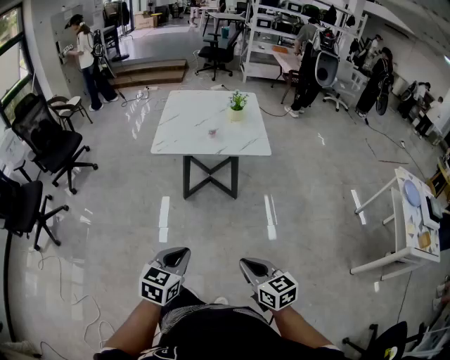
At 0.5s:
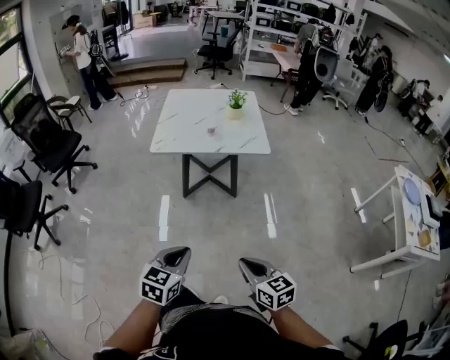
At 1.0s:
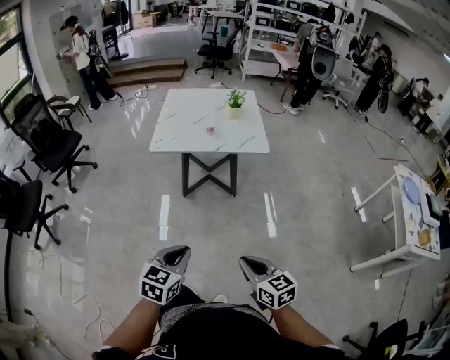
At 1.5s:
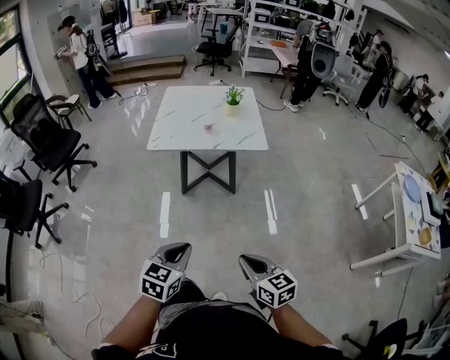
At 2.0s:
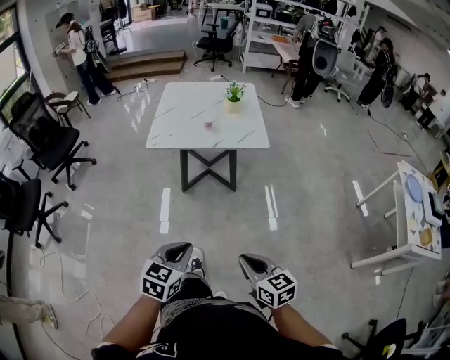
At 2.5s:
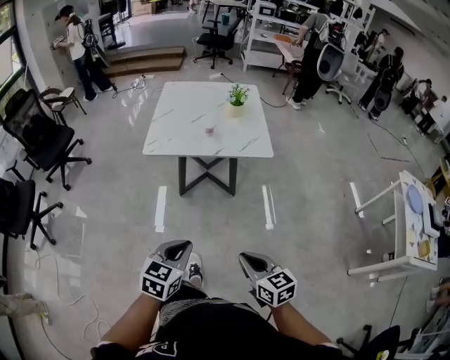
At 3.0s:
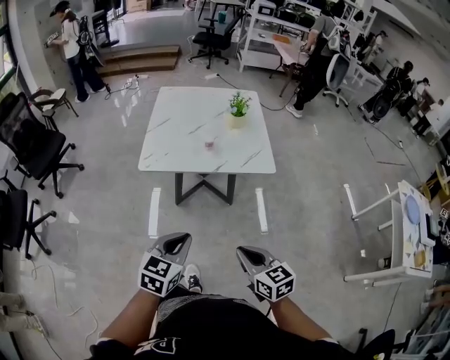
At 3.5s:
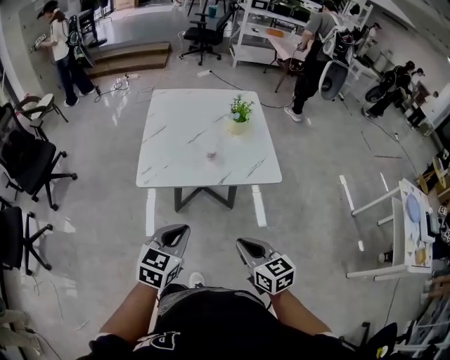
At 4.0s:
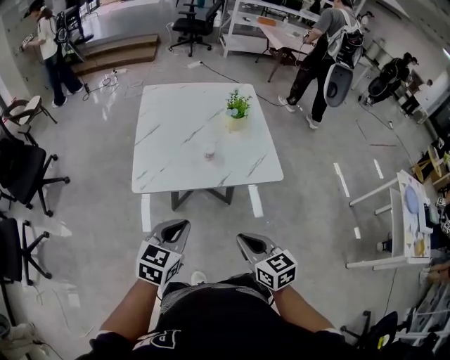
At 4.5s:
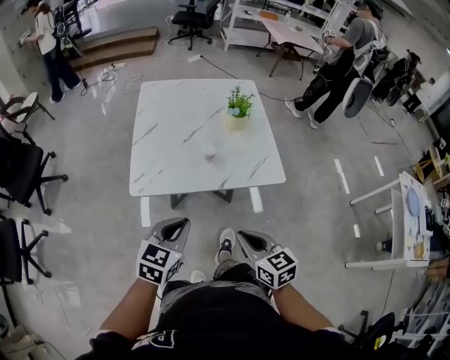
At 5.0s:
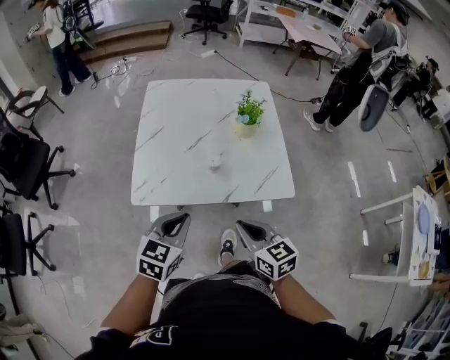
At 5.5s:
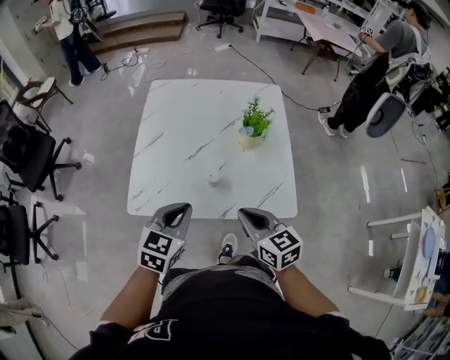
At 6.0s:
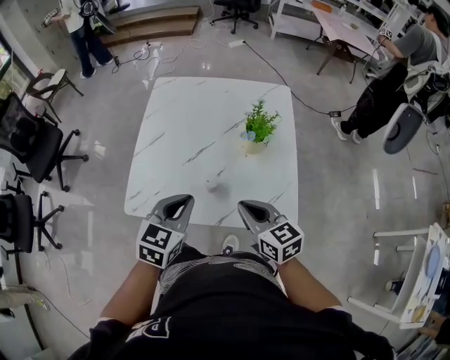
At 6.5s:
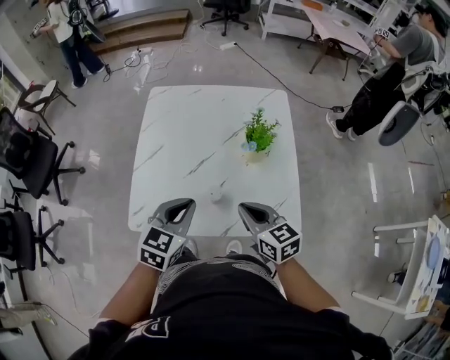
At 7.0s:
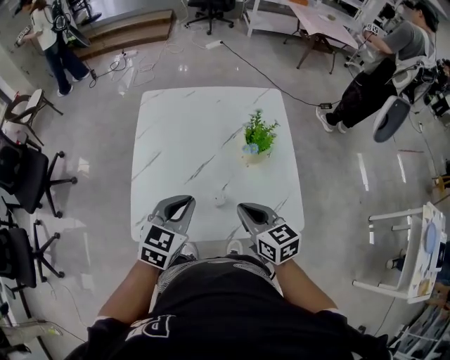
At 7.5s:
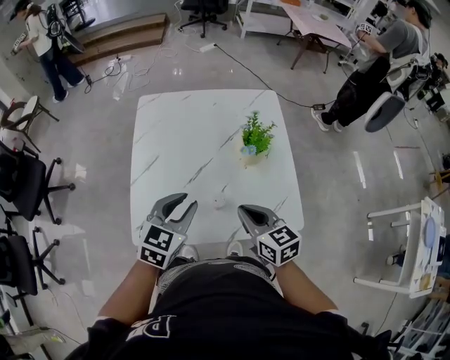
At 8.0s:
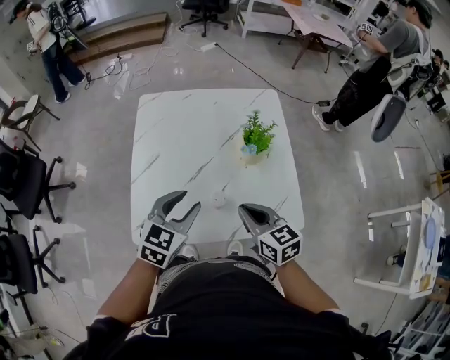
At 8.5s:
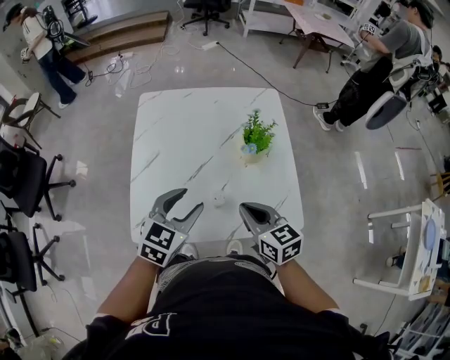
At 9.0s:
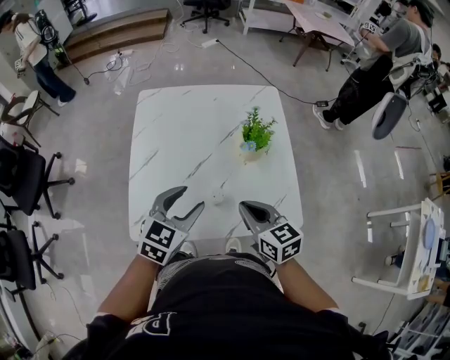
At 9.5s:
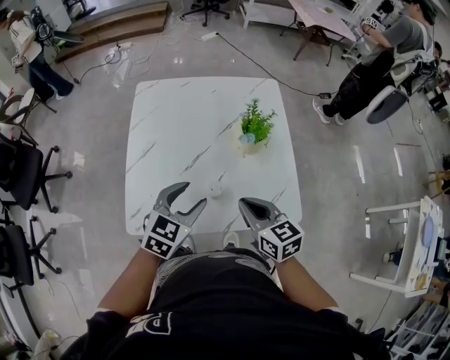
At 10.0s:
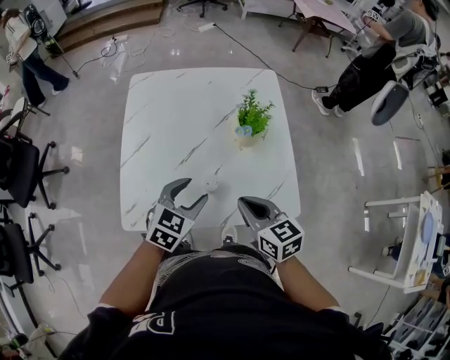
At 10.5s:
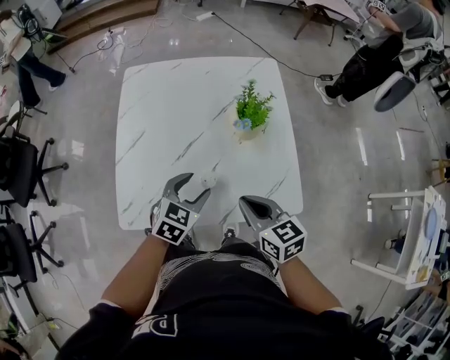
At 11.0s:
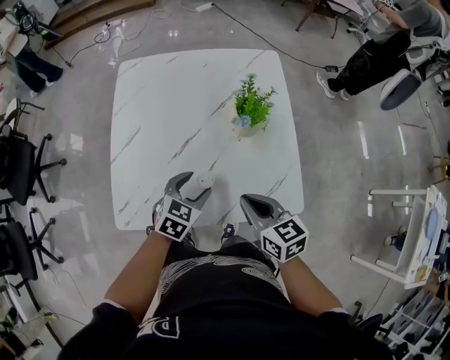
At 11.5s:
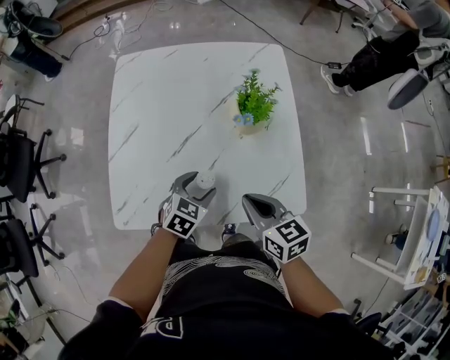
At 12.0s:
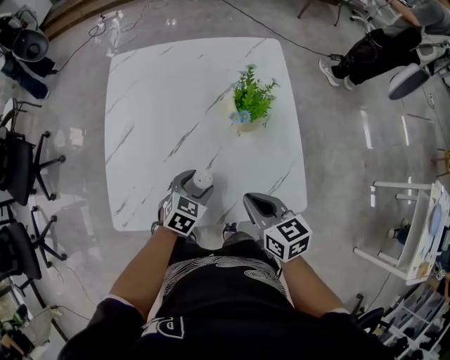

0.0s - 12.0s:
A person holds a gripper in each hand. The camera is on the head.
0.0s - 2.0s: The grippers move only a little.
2.0s - 4.0s: The grippers both shift forward by some 35 cm.
4.0s - 6.0s: Both grippers travel together forward, some 30 cm.
6.0s - 8.0s: The right gripper shifts by approximately 5 cm, while the left gripper travels forward by about 5 cm, and opens.
8.0s - 10.0s: The left gripper travels downward by about 5 cm.
10.0s - 12.0s: The left gripper shifts some 15 cm downward, while the right gripper shifts about 5 cm downward.

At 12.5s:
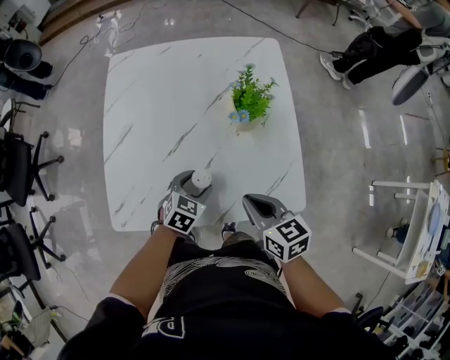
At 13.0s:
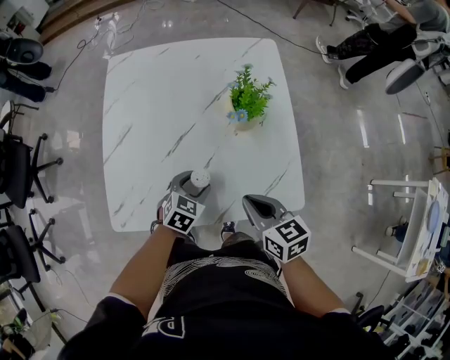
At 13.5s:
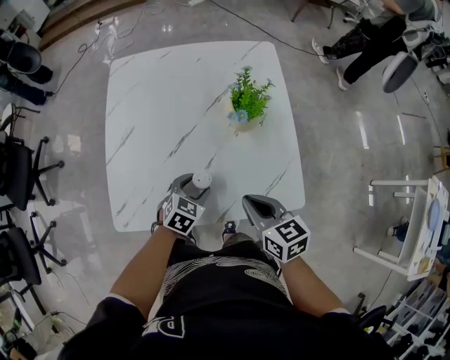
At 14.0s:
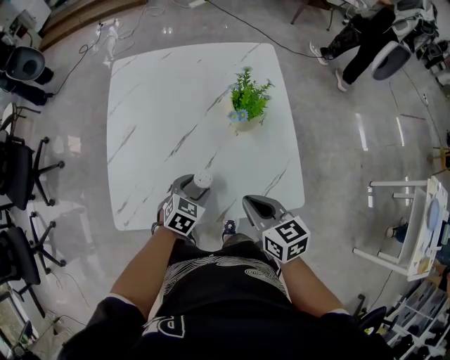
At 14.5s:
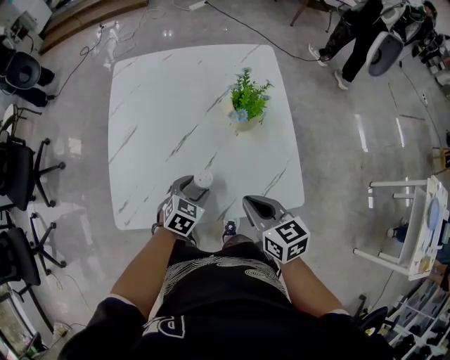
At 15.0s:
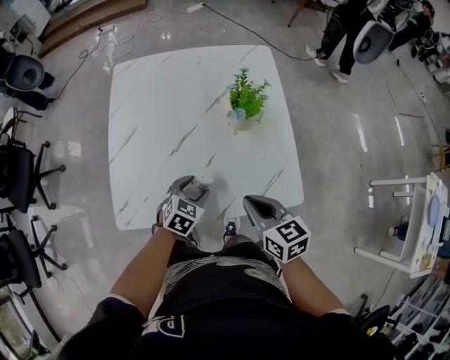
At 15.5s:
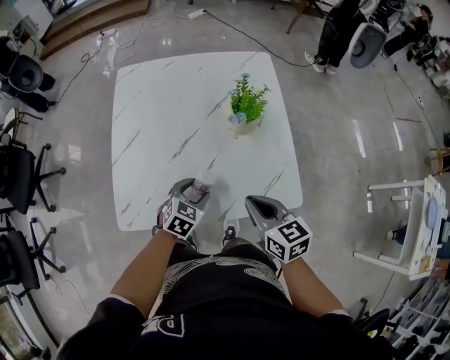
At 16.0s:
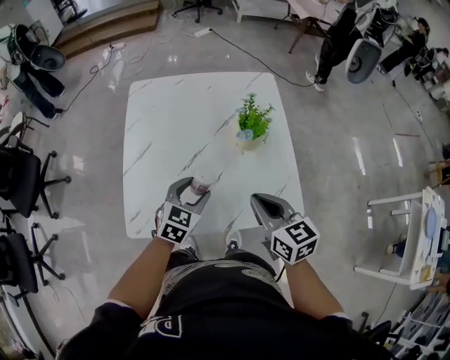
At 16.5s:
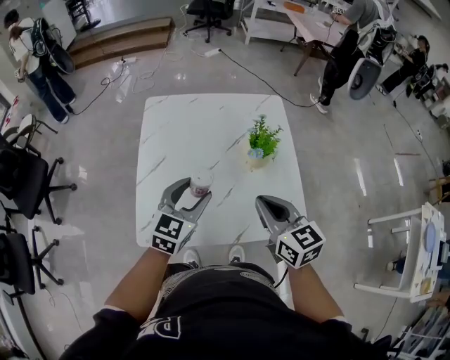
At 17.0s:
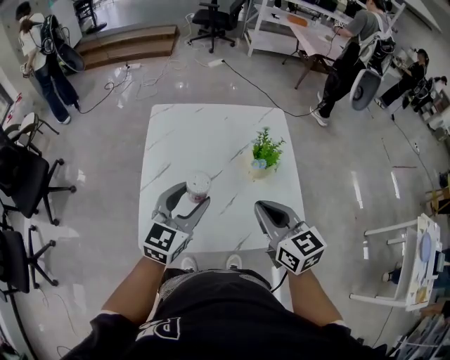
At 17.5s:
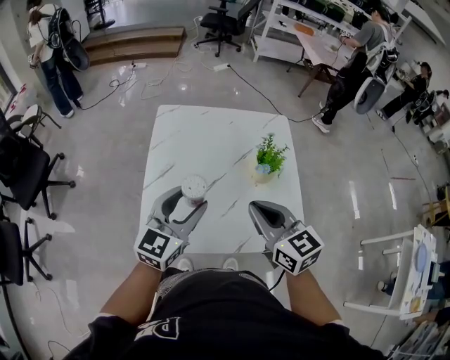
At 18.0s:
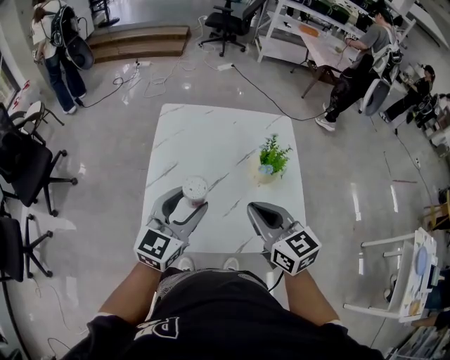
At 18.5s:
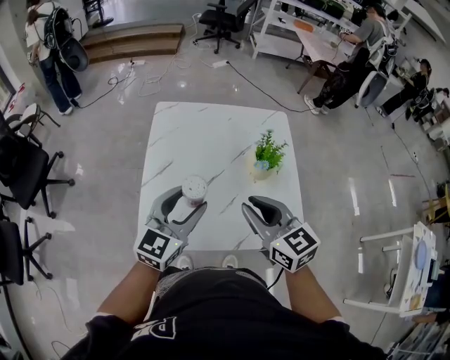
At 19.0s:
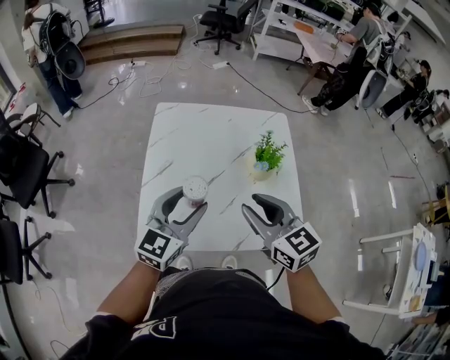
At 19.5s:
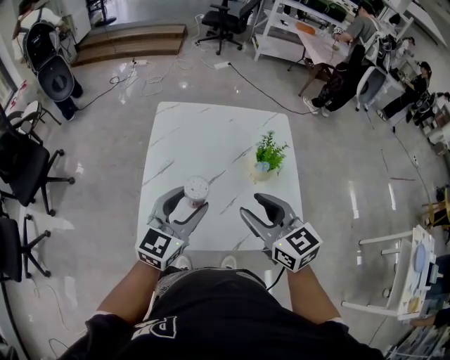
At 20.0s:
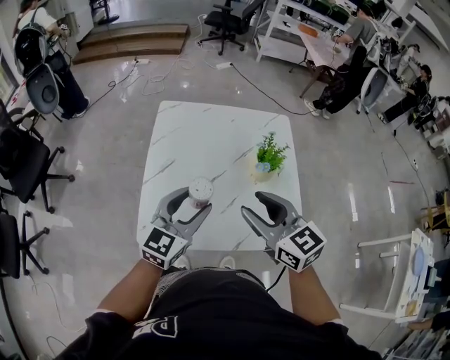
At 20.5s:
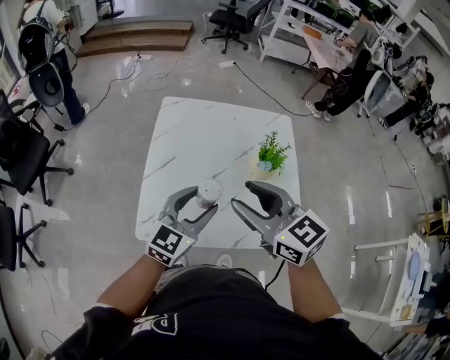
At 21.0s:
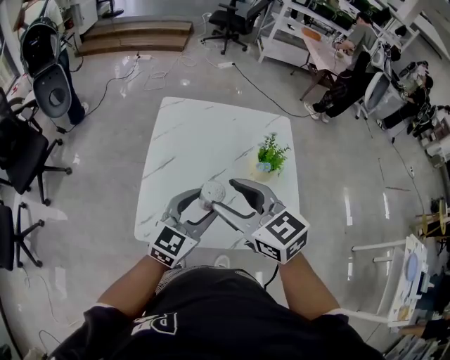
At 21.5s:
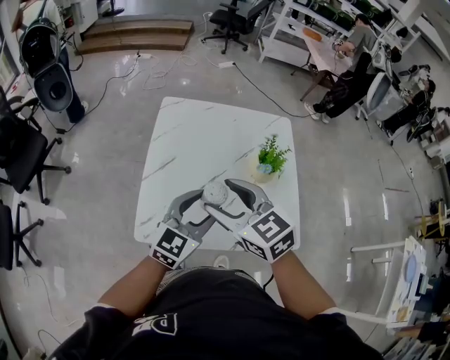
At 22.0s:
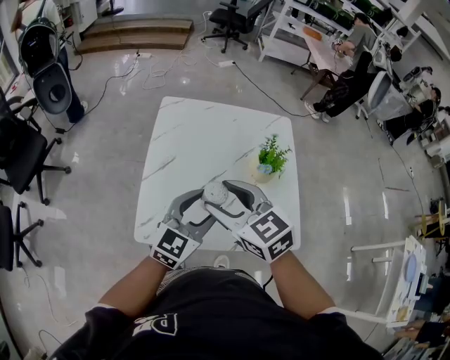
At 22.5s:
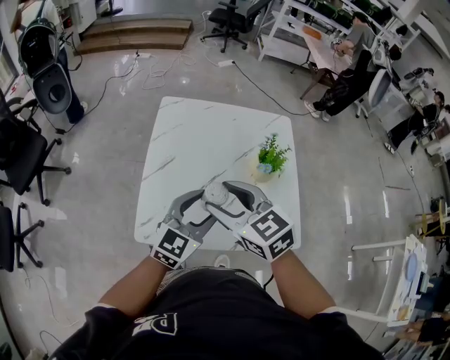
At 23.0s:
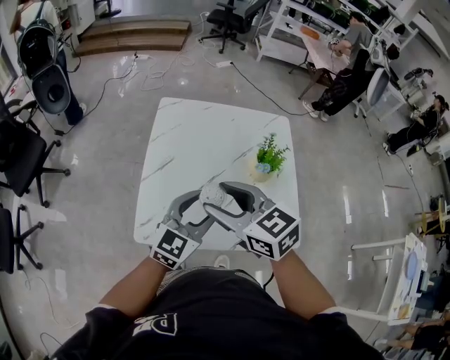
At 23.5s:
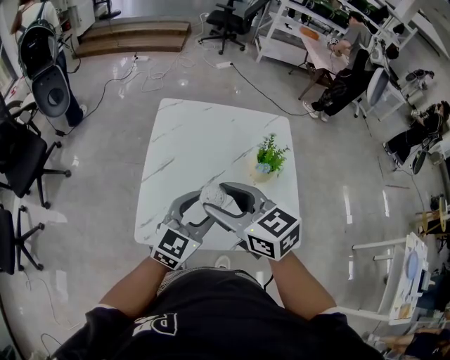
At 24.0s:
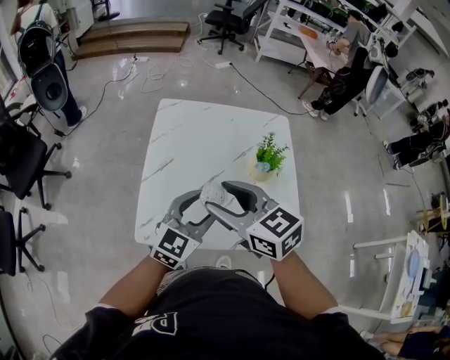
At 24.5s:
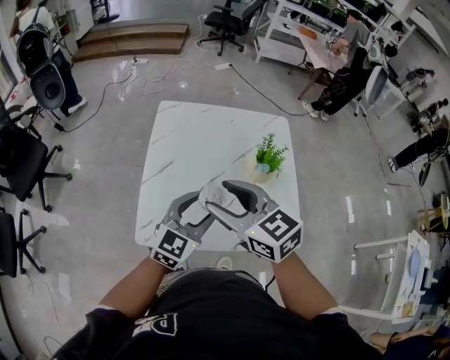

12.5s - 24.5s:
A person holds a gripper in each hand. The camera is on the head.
12.5s - 14.5s: The grippers make only small movements.
14.5s - 16.5s: The right gripper goes roughly 15 cm upward. Meanwhile the left gripper moves upward, some 20 cm, and turns by approximately 30 degrees.
16.5s - 18.5s: The left gripper moves upward, some 5 cm. Meanwhile the right gripper heads to the left, covering about 5 cm.
18.5s - 20.5s: The right gripper heads upward, covering some 5 cm, and opens its fingers.
20.5s - 22.5s: The right gripper moves downward, roughly 5 cm.
22.5s - 24.5s: The grippers make only small movements.

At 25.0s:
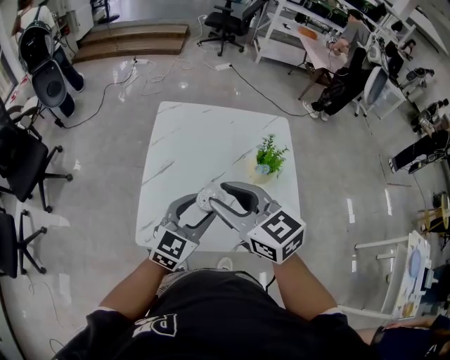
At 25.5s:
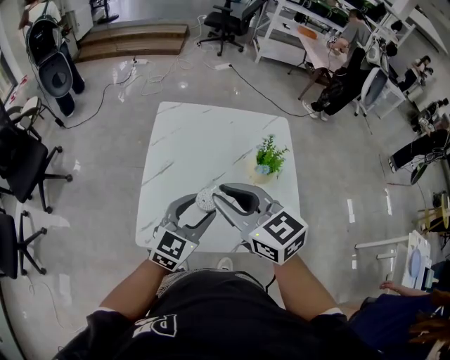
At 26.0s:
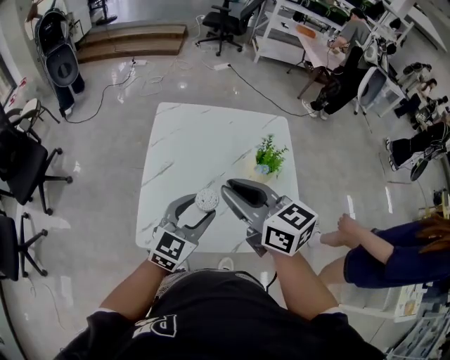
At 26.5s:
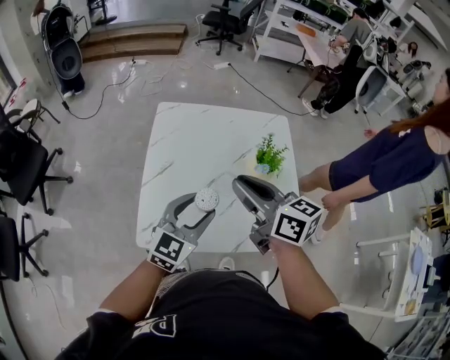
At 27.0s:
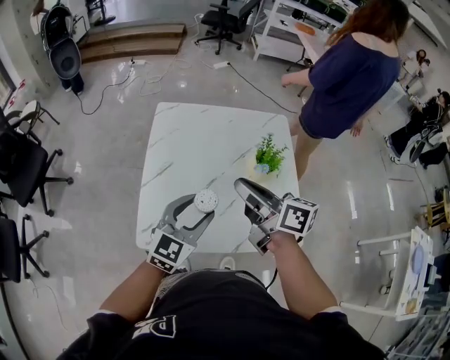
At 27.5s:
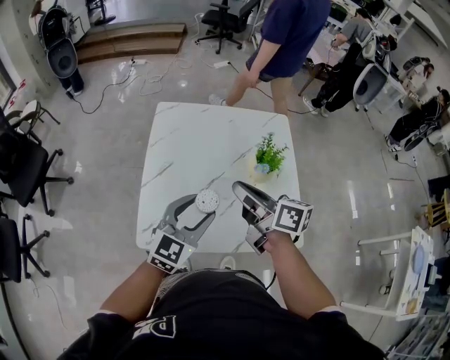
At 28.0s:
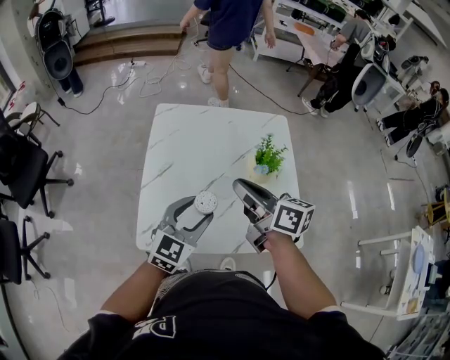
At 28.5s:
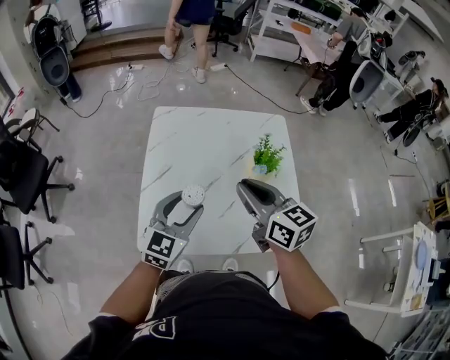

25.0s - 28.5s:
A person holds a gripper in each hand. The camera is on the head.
25.0s - 27.0s: The right gripper is displaced to the right by roughly 10 cm, twists roughly 40 degrees clockwise, seen from behind, and closes.
27.0s - 28.5s: The right gripper swivels some 30 degrees.
